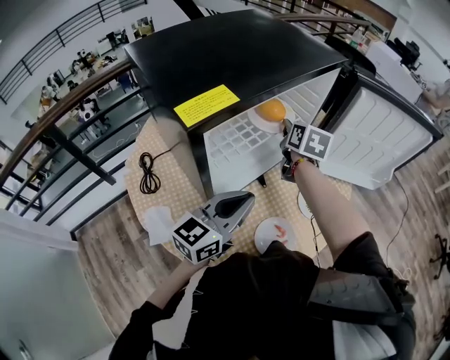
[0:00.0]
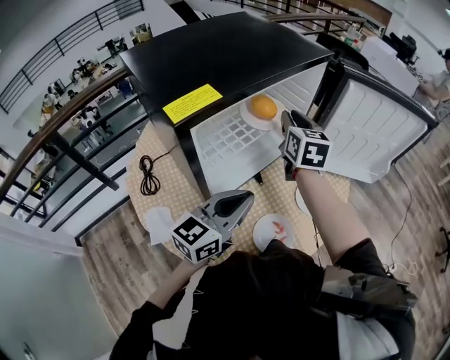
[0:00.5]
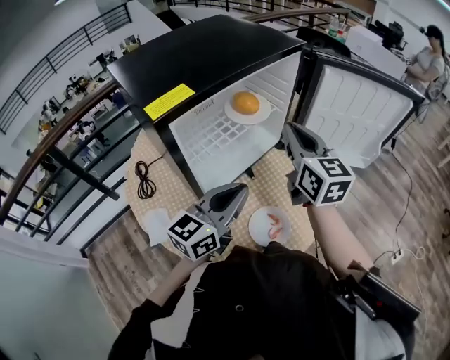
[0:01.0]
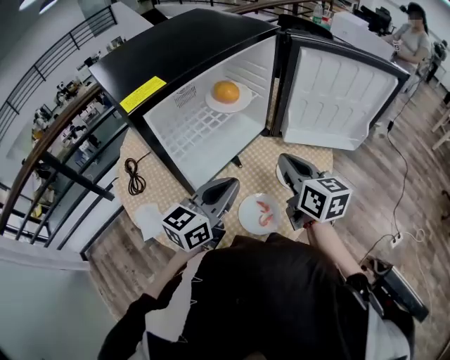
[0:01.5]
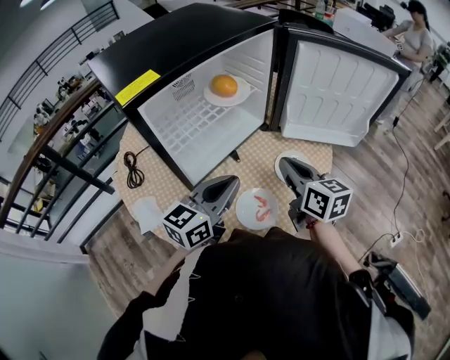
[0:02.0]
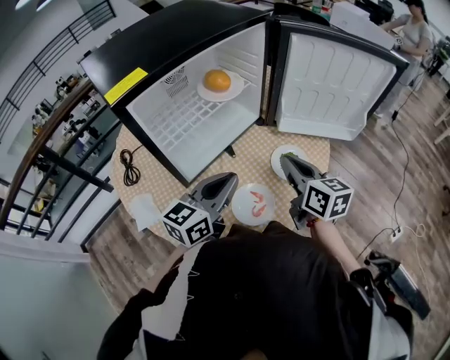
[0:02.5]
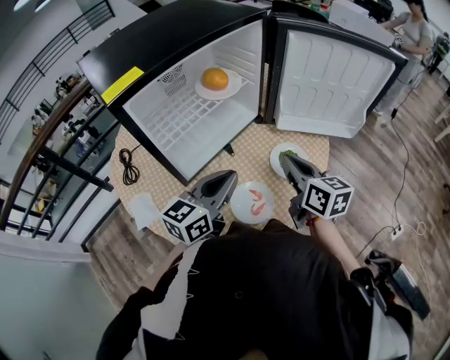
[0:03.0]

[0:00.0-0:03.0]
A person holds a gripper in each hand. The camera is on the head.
0:00.0 to 0:01.5: The right gripper is displaced backward and to the right by approximately 25 cm, swivels some 20 degrees, and closes its fingers, while the left gripper moves to the right, some 5 cm.
0:01.5 to 0:03.0: The right gripper changes place by some 5 cm.

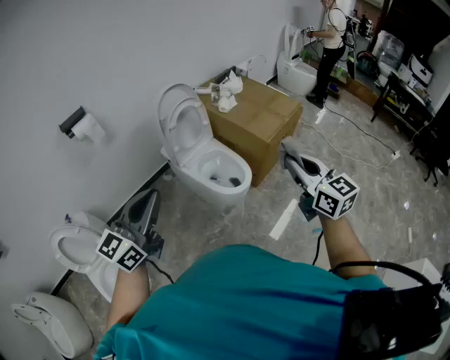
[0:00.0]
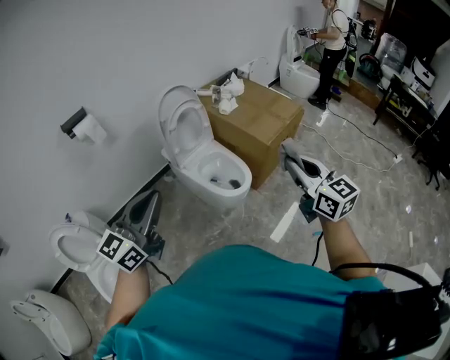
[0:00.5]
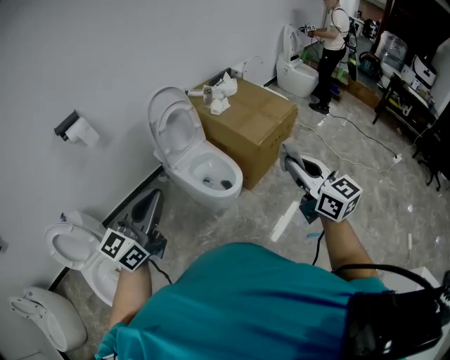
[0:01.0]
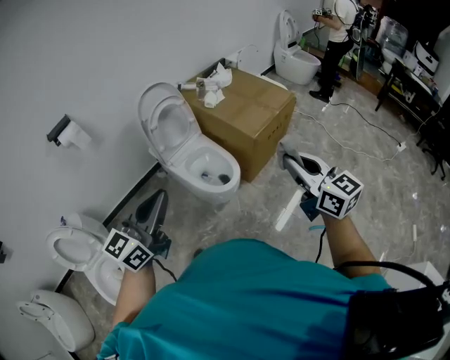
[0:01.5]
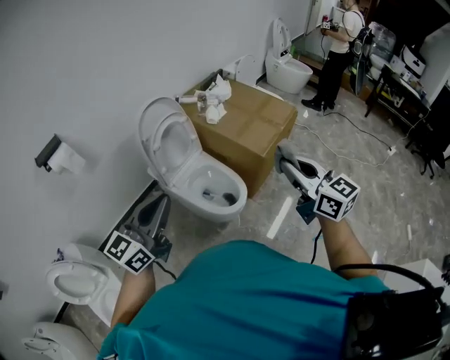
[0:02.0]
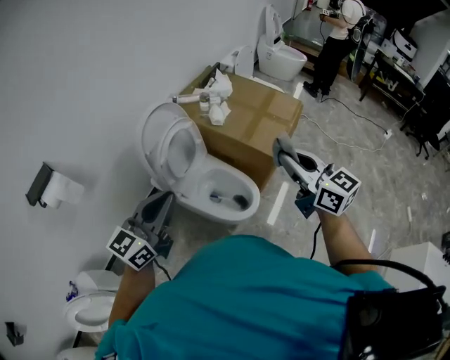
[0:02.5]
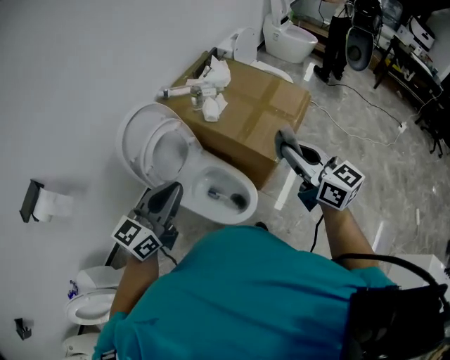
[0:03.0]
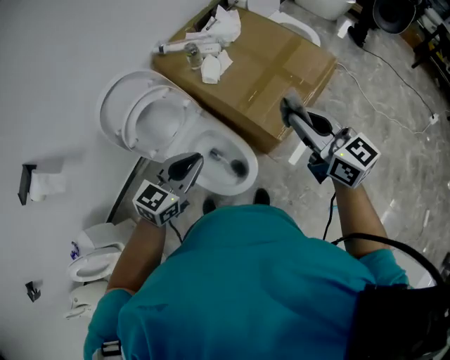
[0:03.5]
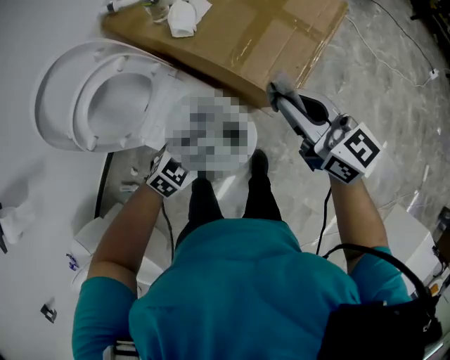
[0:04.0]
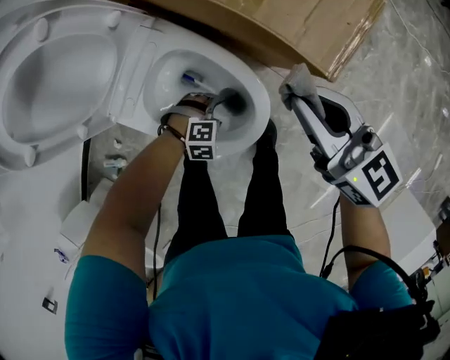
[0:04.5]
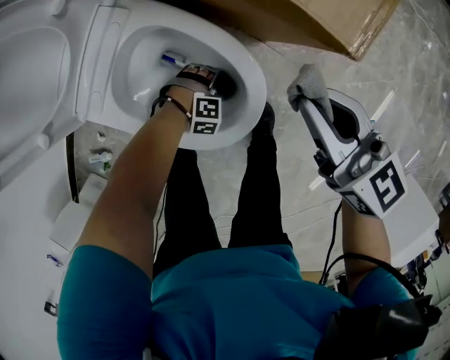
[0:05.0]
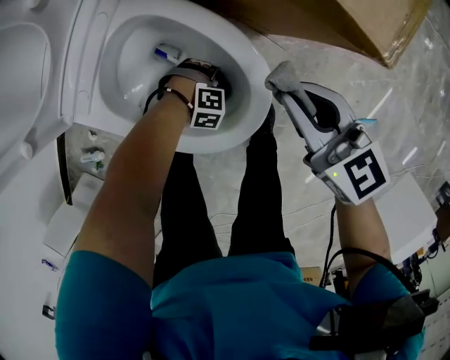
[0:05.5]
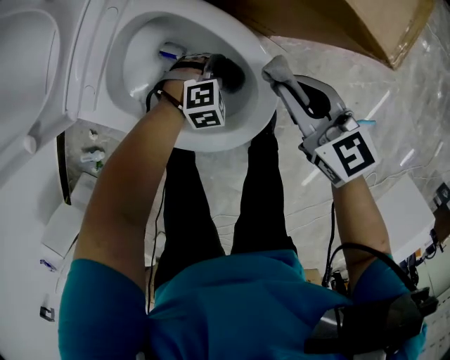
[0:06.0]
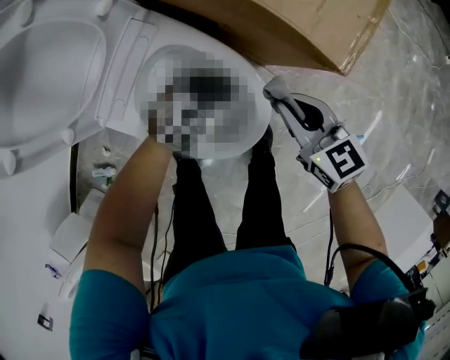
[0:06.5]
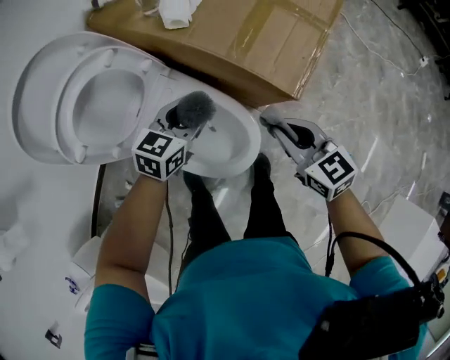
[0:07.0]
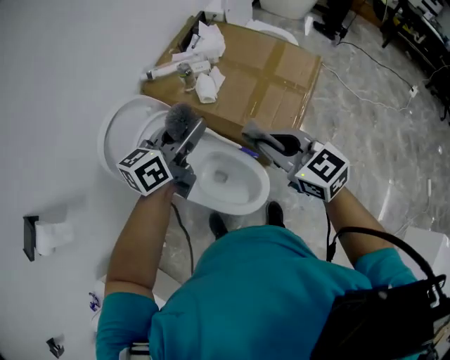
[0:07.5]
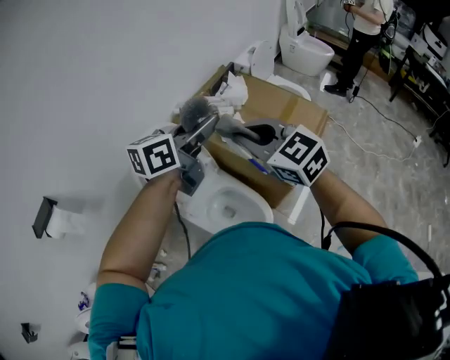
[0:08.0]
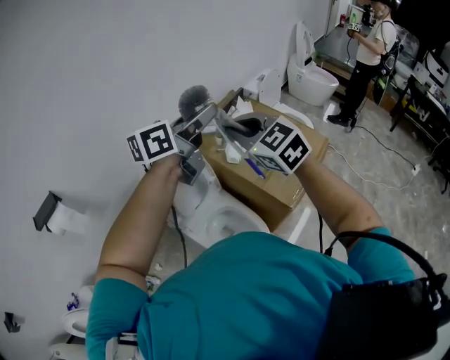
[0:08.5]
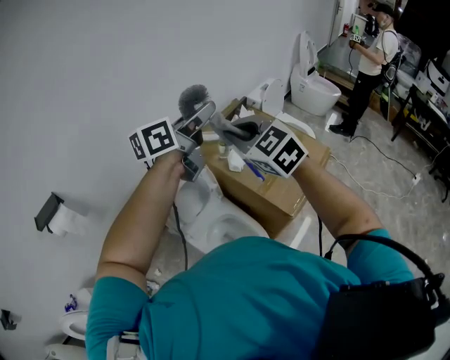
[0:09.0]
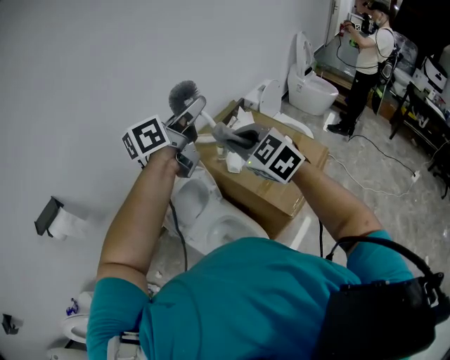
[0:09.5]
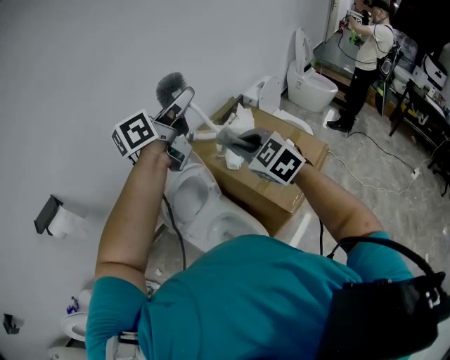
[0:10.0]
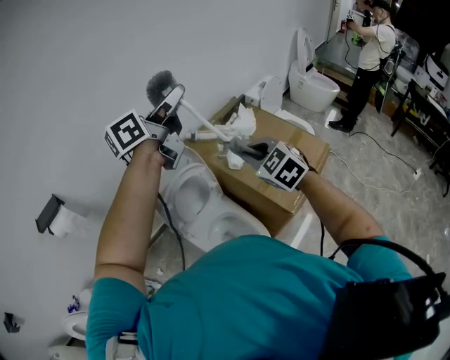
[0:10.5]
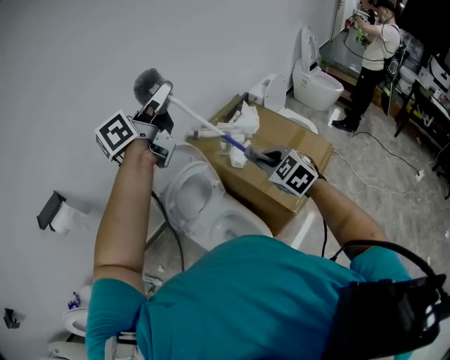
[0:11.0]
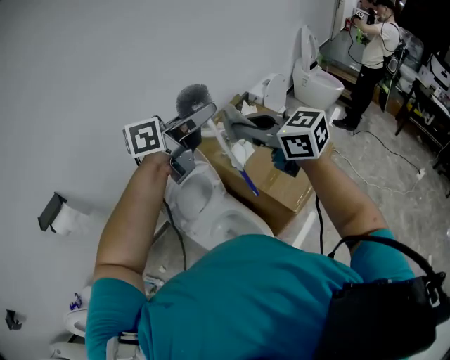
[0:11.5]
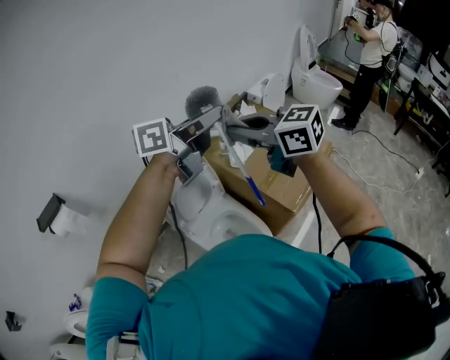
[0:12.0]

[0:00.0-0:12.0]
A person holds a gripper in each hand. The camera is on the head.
0:00.0 to 0:02.0: Both grippers move forward, approximately 15 cm.
0:02.0 to 0:04.0: The right gripper travels forward and downward by about 50 cm, while the left gripper heads downward and forward, covering about 60 cm, tilts its fingers approximately 50 degrees downward, and opens up.
0:04.0 to 0:06.0: The two grippers go approximately 40 cm downward. The right gripper changes its angle by approximately 20 degrees, while the left gripper turns by about 40 degrees, and opens and closes again.
0:06.0 to 0:08.0: The two grippers go approximately 80 cm upward. The left gripper tips its fingers upward by some 60 degrees, while the right gripper changes its angle by about 40 degrees.
0:08.0 to 0:10.0: The right gripper turns by approximately 20 degrees. Meanwhile the left gripper shifts some 15 cm upward, to the left and forward.
0:10.0 to 0:12.0: The left gripper changes place by roughly 10 cm, and changes its angle by approximately 20 degrees, while the right gripper travels upward by about 10 cm, and swivels some 40 degrees.

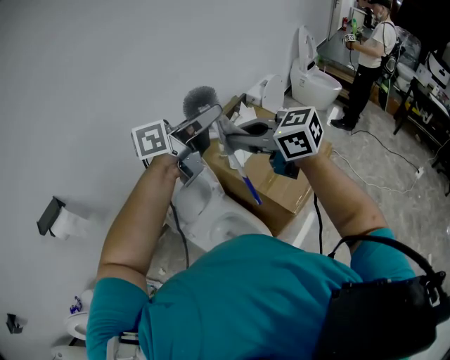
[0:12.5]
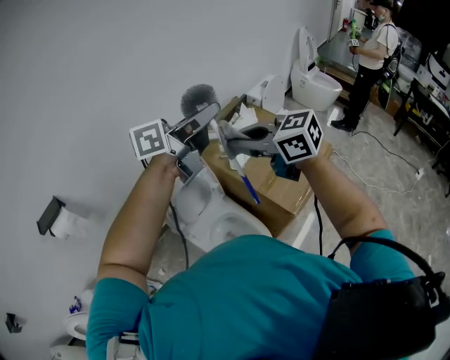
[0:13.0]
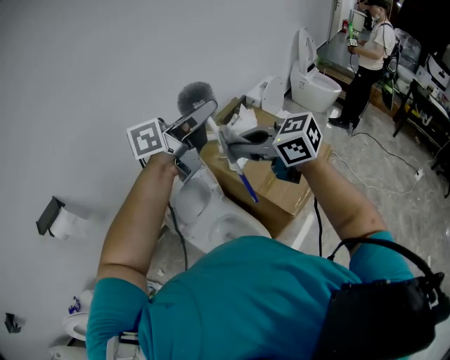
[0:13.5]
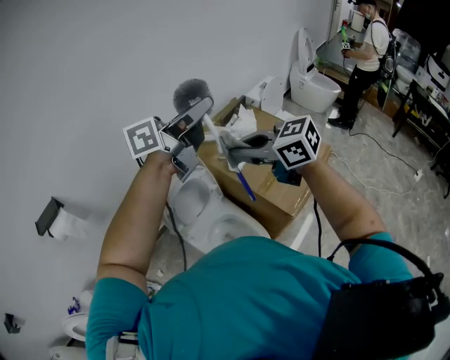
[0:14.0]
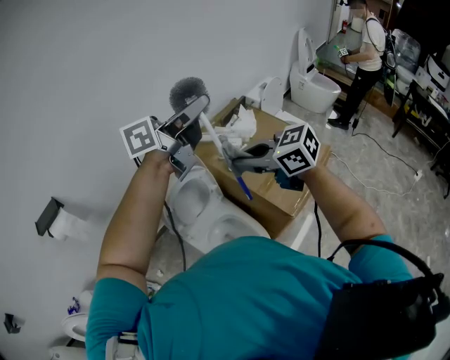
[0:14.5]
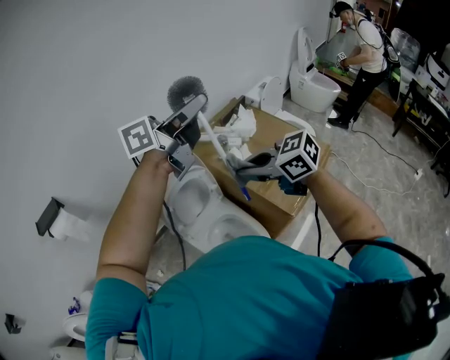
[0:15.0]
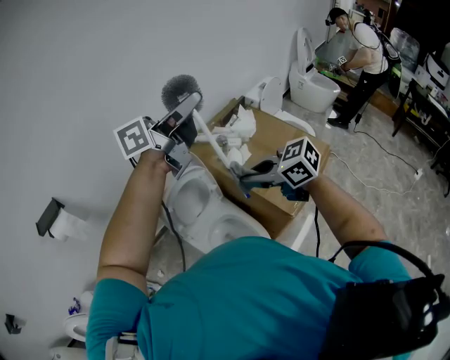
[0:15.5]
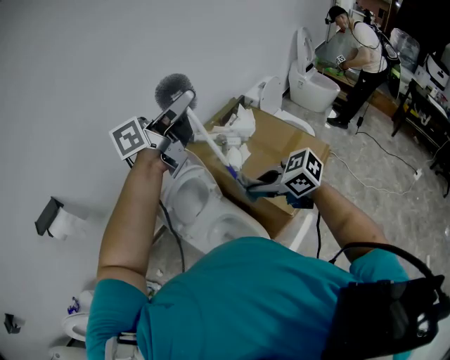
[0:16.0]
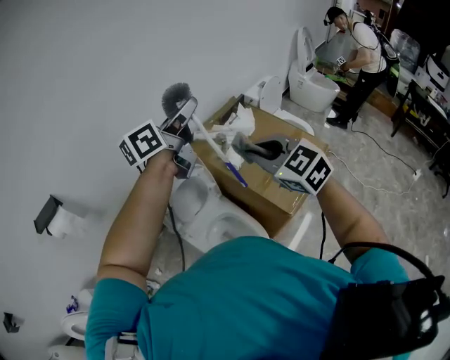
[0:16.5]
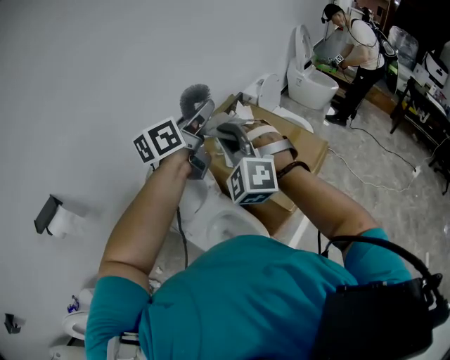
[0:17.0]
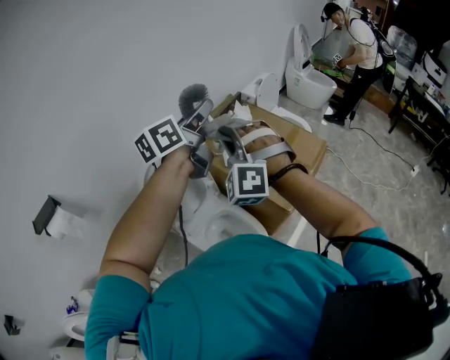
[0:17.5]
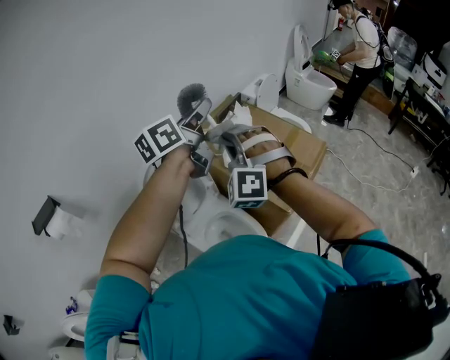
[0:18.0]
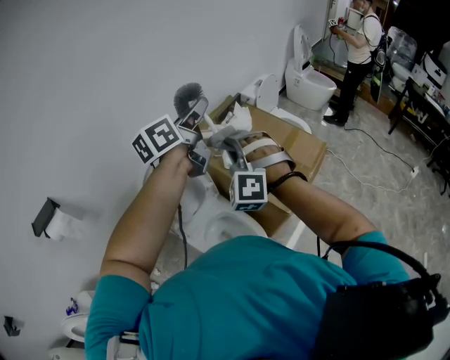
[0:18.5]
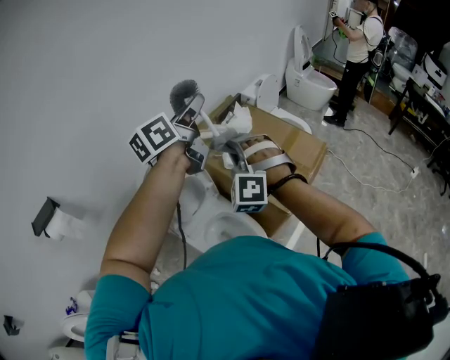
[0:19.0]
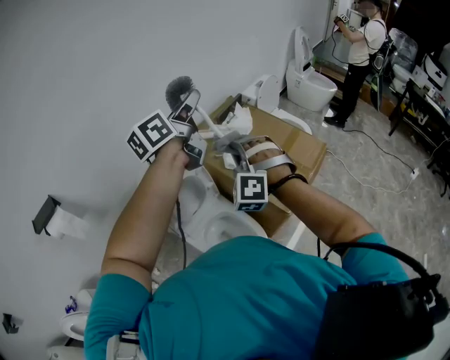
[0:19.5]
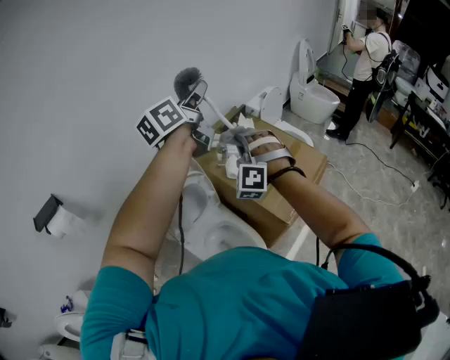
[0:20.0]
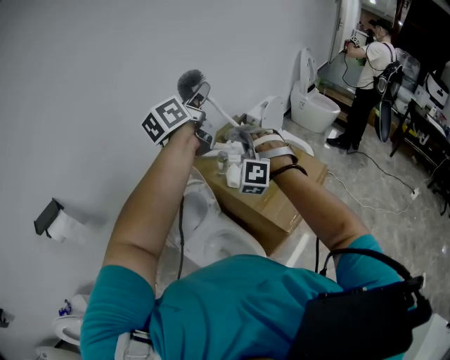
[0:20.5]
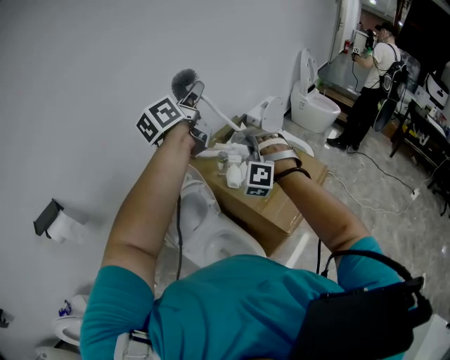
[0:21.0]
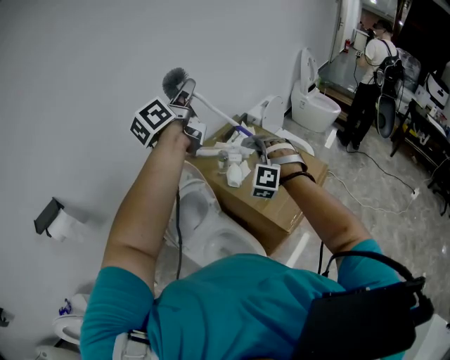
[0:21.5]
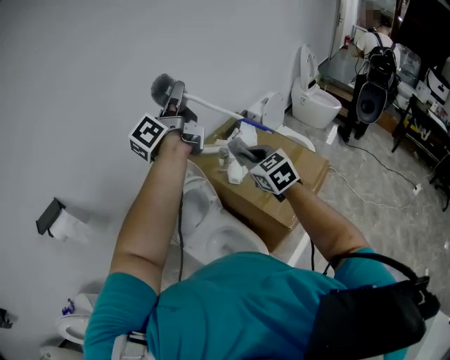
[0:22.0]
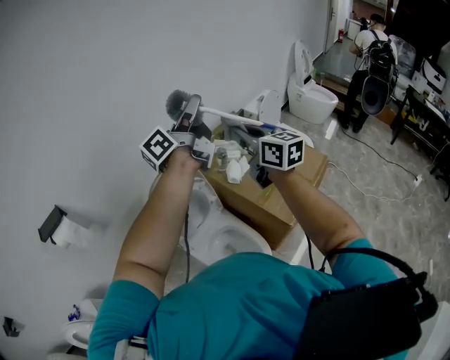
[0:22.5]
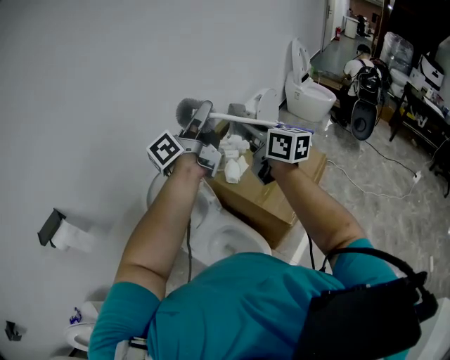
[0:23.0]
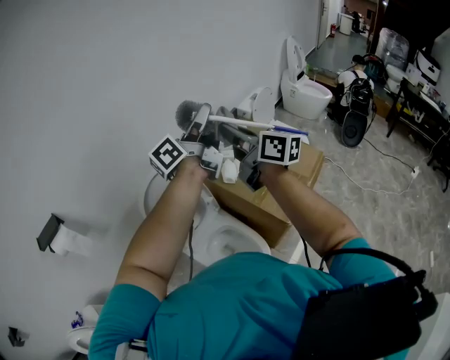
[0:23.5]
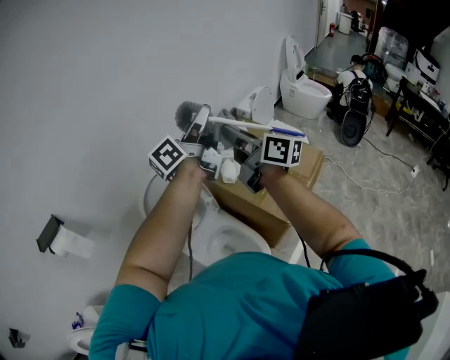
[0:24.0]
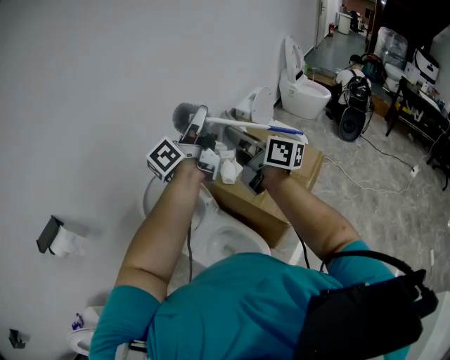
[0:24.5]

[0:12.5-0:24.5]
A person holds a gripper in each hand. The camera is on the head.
0:12.5 to 0:14.5: The right gripper goes about 5 cm downward.
0:14.5 to 0:16.5: The right gripper travels downward and back again, about 10 cm each way, and rotates approximately 30 degrees; the left gripper shifts by roughly 5 cm, and swivels roughly 20 degrees.
0:16.5 to 0:18.5: The right gripper moves about 10 cm, and changes its angle by some 60 degrees.
0:18.5 to 0:20.5: The right gripper heads forward, covering roughly 10 cm. Meanwhile the left gripper heads upward and forward, covering about 10 cm.
0:20.5 to 0:22.5: The left gripper shifts by some 5 cm, and swivels about 20 degrees, while the right gripper is displaced upward by roughly 5 cm, and twists approximately 100 degrees clockwise, seen from behind.
0:22.5 to 0:24.5: The right gripper turns by some 30 degrees.
